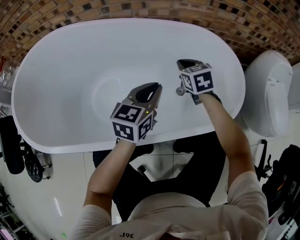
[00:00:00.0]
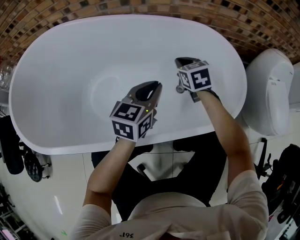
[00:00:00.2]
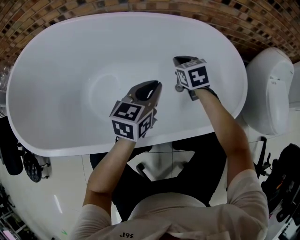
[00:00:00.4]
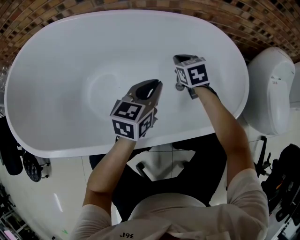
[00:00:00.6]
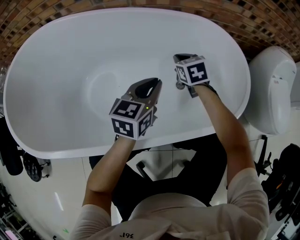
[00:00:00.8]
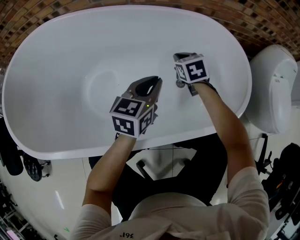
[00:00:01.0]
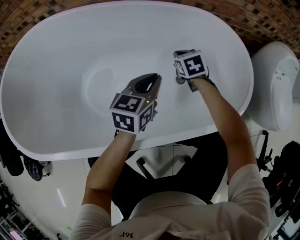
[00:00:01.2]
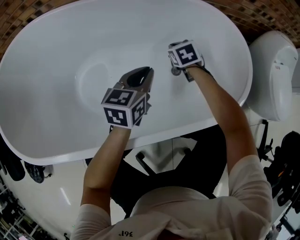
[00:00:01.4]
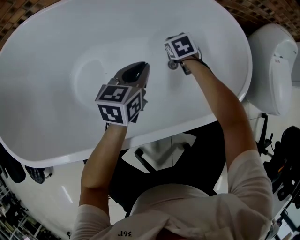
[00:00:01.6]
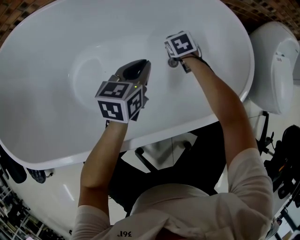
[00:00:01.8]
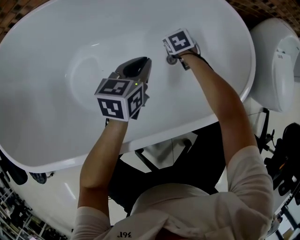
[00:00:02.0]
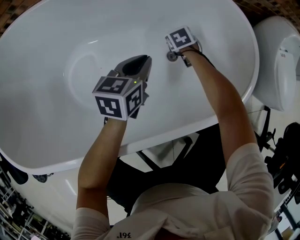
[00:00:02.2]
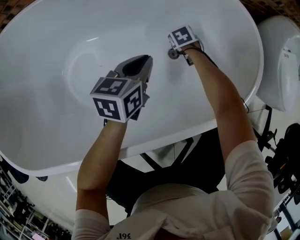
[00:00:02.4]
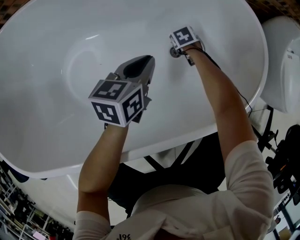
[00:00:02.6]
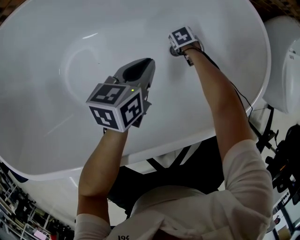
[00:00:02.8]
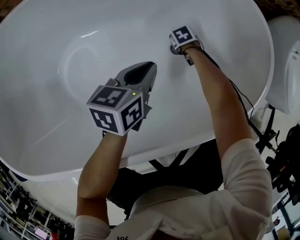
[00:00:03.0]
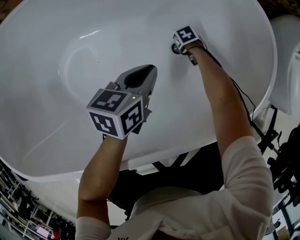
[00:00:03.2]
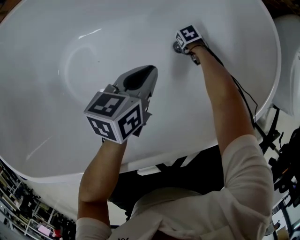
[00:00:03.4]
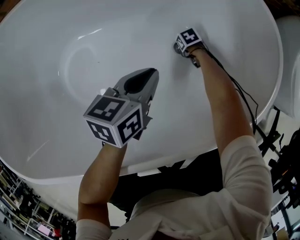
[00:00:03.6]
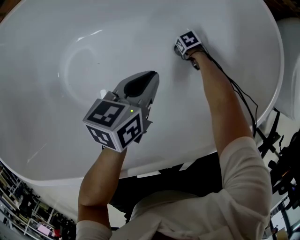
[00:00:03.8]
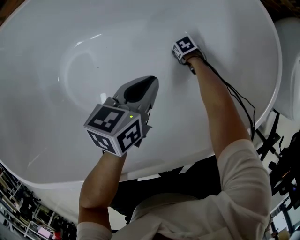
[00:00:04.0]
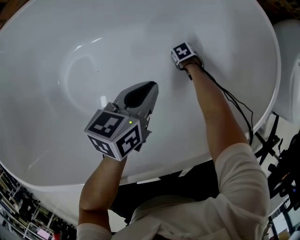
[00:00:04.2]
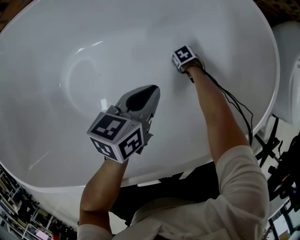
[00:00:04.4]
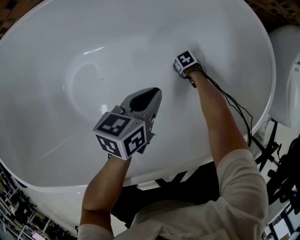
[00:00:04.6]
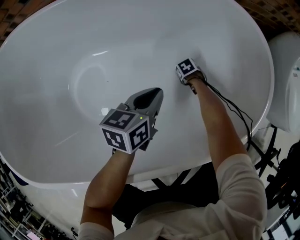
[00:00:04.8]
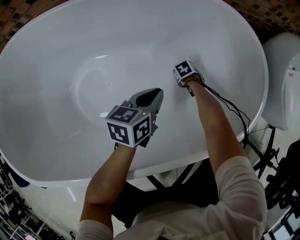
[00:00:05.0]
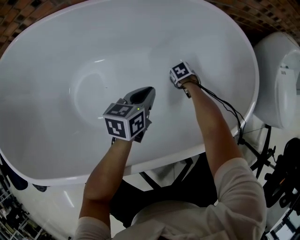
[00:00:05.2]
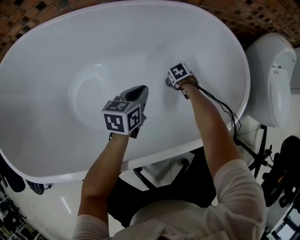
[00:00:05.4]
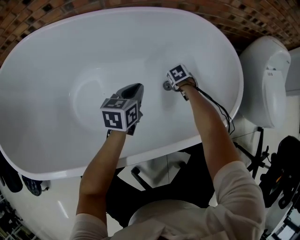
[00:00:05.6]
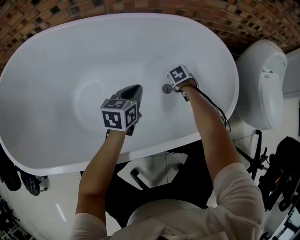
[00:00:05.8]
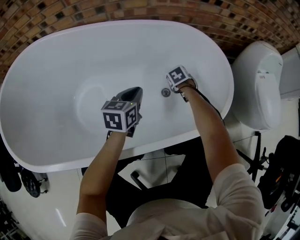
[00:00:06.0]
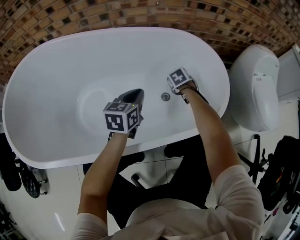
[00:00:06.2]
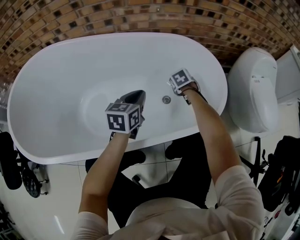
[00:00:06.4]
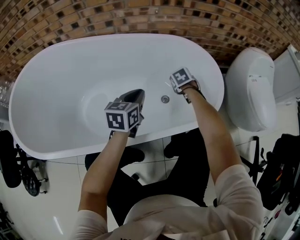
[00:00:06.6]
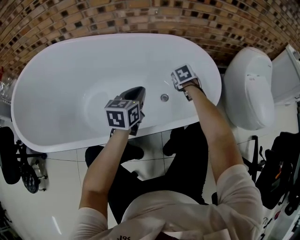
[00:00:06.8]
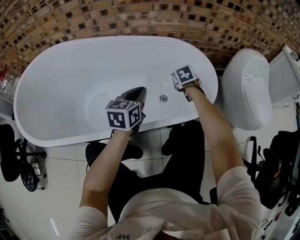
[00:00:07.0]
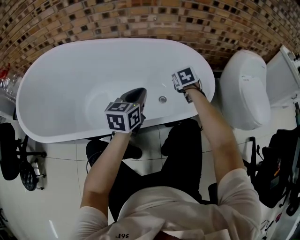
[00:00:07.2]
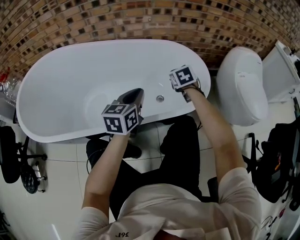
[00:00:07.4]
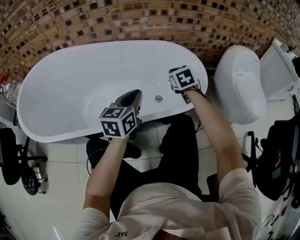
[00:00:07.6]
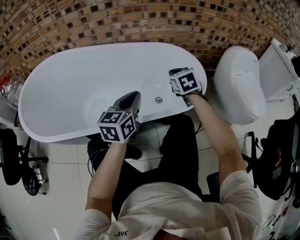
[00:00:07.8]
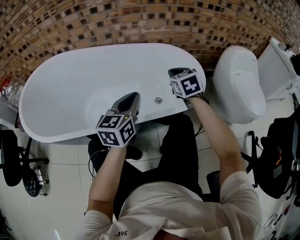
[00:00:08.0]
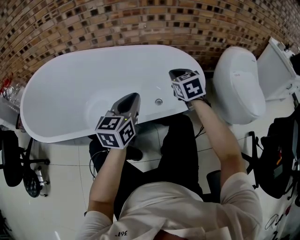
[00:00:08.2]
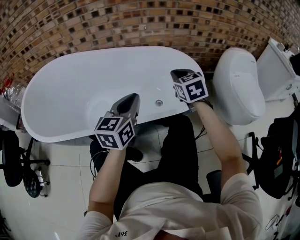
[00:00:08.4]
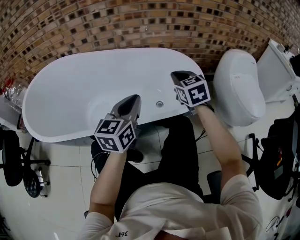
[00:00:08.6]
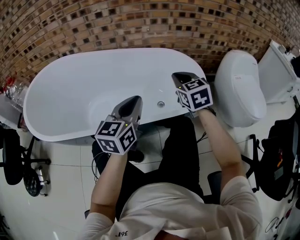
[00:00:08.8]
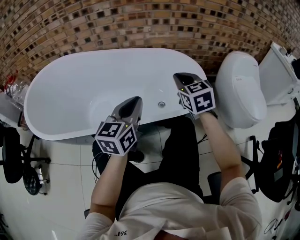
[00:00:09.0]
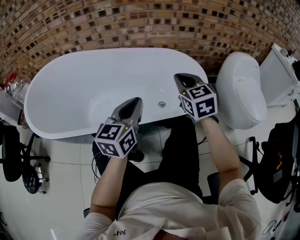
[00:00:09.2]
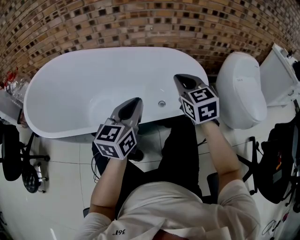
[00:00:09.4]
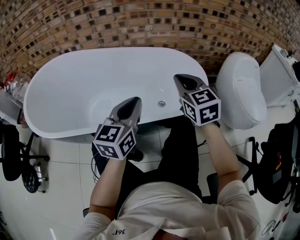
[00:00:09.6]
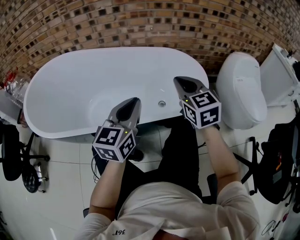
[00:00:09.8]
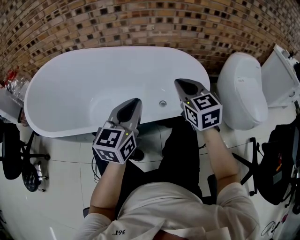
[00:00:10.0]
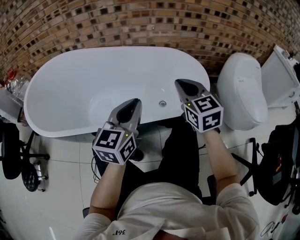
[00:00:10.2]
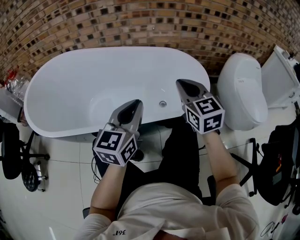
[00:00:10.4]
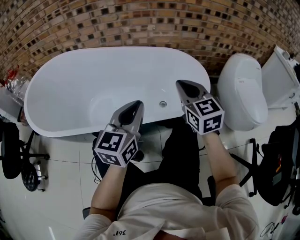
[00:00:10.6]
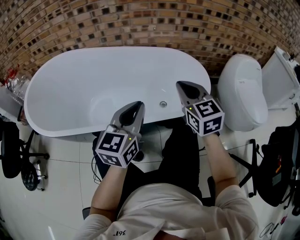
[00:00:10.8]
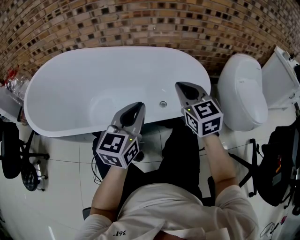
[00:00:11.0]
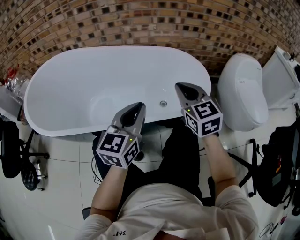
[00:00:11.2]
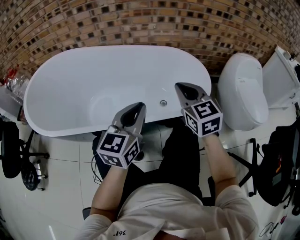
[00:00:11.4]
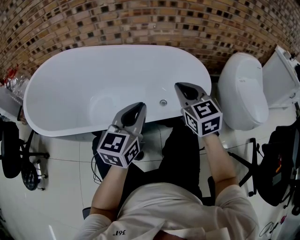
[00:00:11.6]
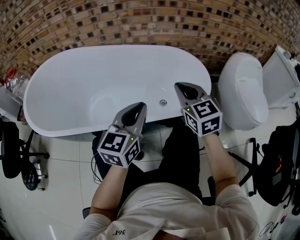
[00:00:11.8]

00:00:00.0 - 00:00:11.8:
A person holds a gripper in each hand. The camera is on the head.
00:00:00.0 - 00:00:01.4: The left gripper is displaced downward by some 10 cm; the right gripper shifts about 15 cm downward.
00:00:01.4 - 00:00:03.0: The right gripper moves downward, some 25 cm, and changes its angle by some 20 degrees. The left gripper shifts approximately 5 cm downward.
00:00:03.0 - 00:00:04.4: The right gripper travels downward by roughly 5 cm.
00:00:04.4 - 00:00:06.0: The right gripper moves upward, some 25 cm. Meanwhile the left gripper goes some 5 cm upward.
00:00:06.0 - 00:00:07.4: The left gripper goes approximately 20 cm upward and backward, while the right gripper heads upward, covering about 25 cm, and rotates some 30 degrees.
00:00:07.4 - 00:00:08.8: The left gripper shifts approximately 10 cm upward and backward. Meanwhile the right gripper travels upward and backward by some 20 cm, and rotates roughly 20 degrees.
00:00:08.8 - 00:00:10.4: The right gripper moves backward, about 5 cm.
00:00:10.4 - 00:00:11.8: The grippers move only a little.

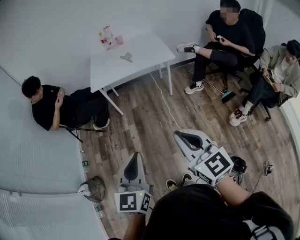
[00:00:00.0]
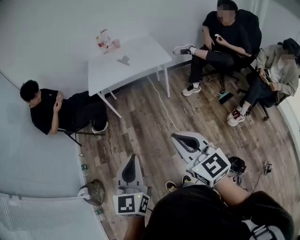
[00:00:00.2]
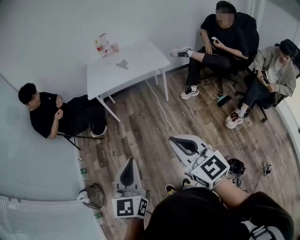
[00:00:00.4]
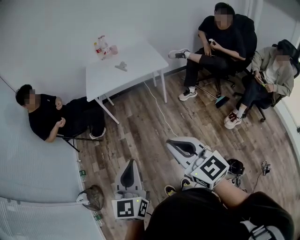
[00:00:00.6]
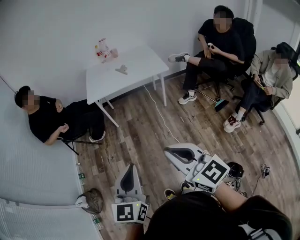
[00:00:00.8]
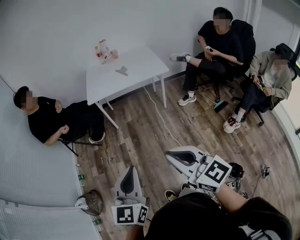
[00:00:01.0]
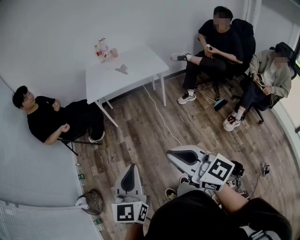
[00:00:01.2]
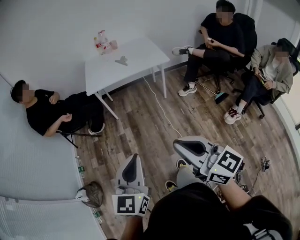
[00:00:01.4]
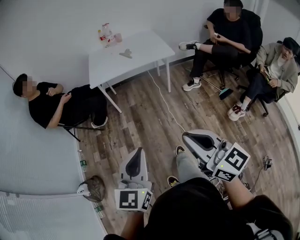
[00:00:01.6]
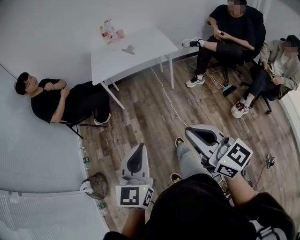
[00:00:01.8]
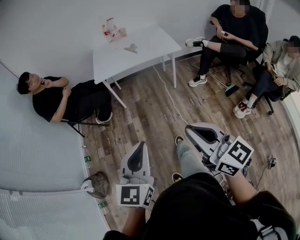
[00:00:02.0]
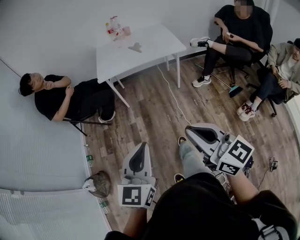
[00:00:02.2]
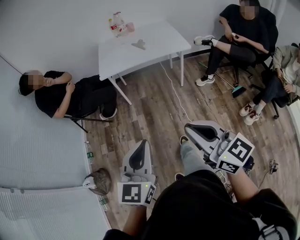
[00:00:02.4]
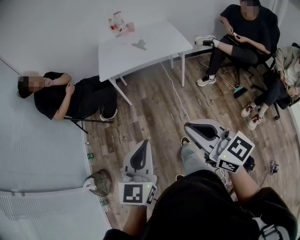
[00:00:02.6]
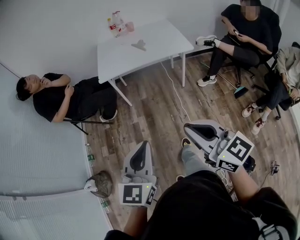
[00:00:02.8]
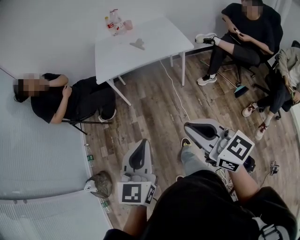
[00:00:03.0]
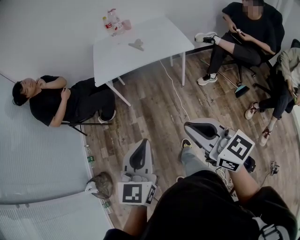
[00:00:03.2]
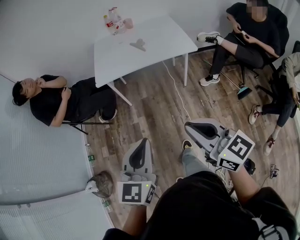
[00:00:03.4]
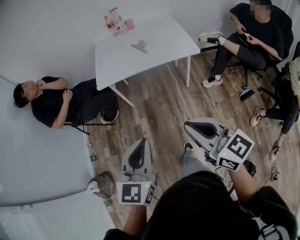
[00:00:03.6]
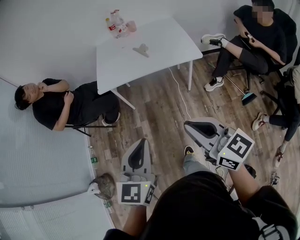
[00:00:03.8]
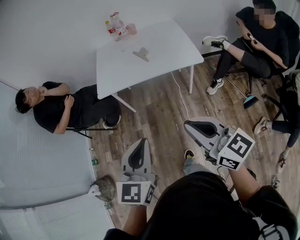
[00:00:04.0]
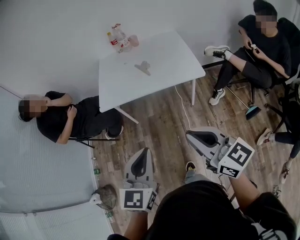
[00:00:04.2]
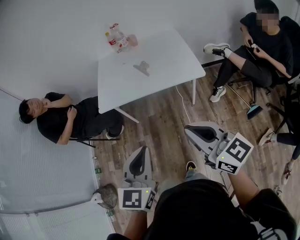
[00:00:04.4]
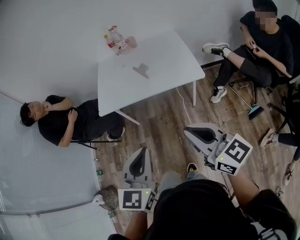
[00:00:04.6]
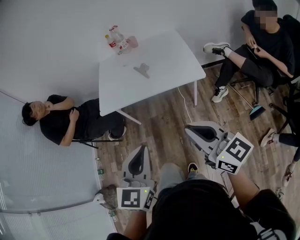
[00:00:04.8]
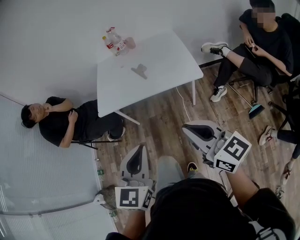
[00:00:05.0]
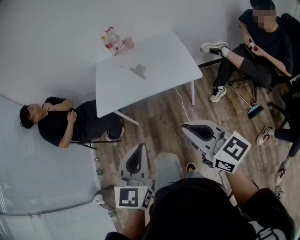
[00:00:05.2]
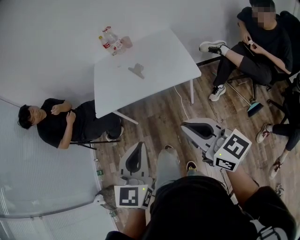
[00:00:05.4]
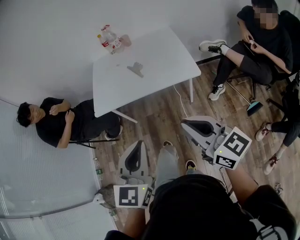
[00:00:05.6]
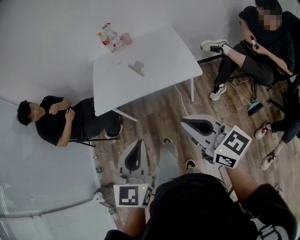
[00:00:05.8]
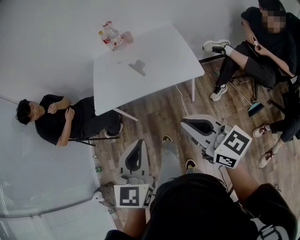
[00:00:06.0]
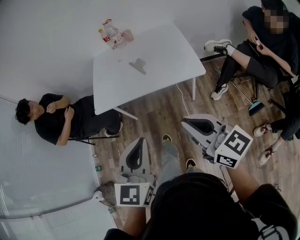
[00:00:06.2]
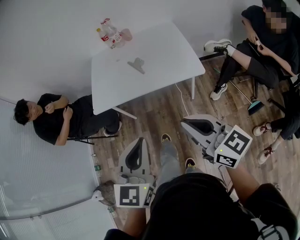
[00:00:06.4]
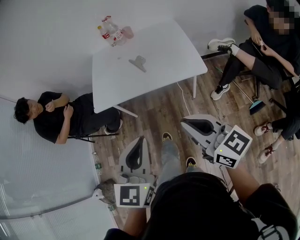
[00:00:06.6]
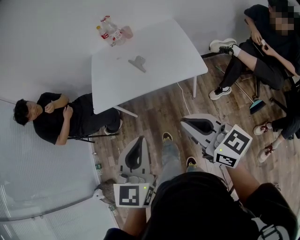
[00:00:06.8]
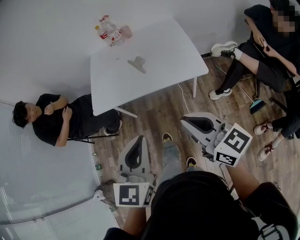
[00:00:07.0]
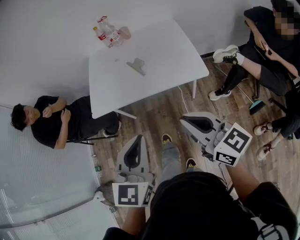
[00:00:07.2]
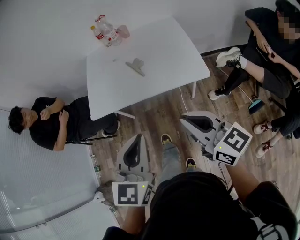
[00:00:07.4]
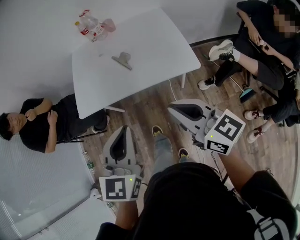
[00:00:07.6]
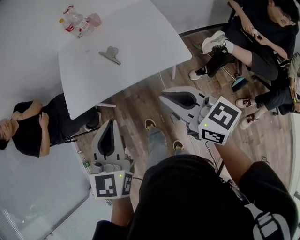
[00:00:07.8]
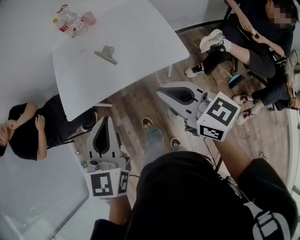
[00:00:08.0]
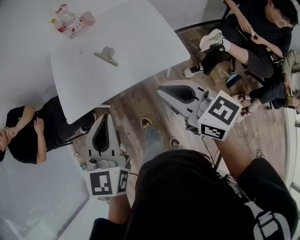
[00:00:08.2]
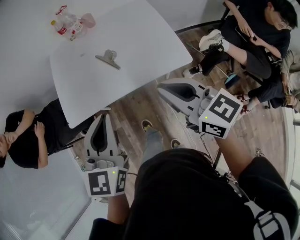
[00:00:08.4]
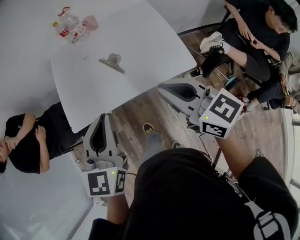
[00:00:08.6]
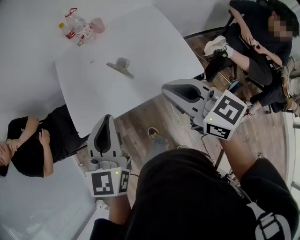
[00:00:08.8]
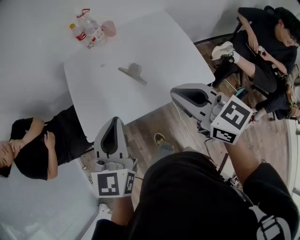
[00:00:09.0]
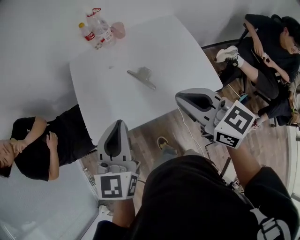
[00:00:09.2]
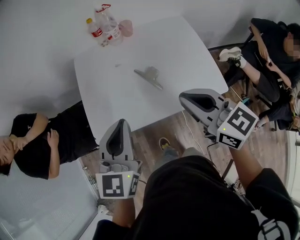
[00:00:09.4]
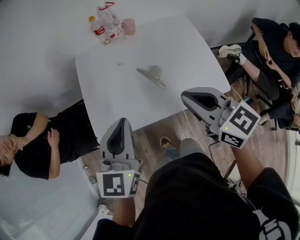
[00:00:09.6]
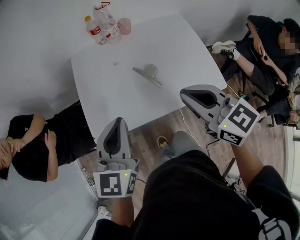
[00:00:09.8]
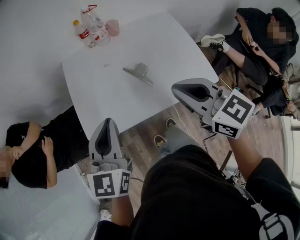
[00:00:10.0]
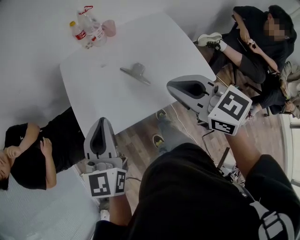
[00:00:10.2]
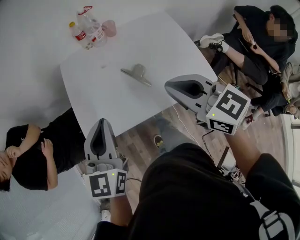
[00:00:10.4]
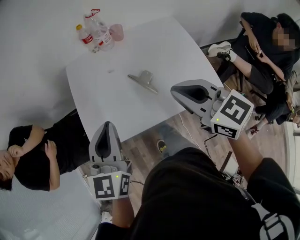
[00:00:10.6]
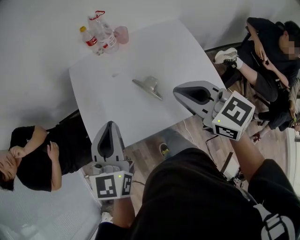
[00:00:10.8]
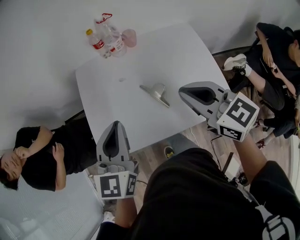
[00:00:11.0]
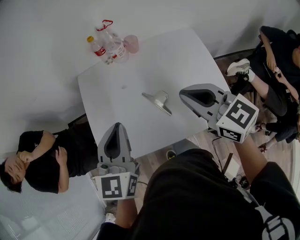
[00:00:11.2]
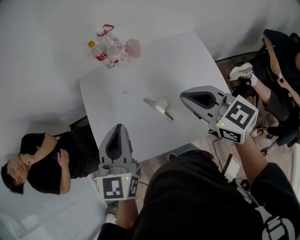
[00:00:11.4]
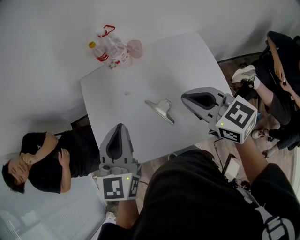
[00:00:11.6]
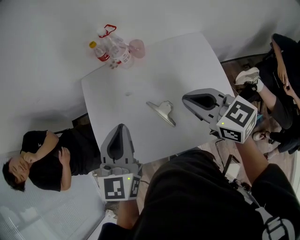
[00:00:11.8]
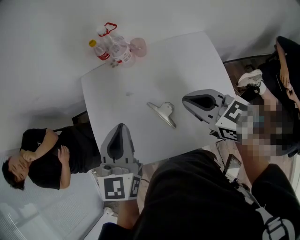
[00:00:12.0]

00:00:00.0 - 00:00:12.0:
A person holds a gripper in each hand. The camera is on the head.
00:00:00.0 - 00:00:01.6: The right gripper travels backward by approximately 5 cm.
00:00:01.6 - 00:00:03.0: Both grippers move forward, roughly 15 cm.
00:00:03.0 - 00:00:04.4: The two grippers go roughly 25 cm forward and to the right.
00:00:04.4 - 00:00:06.0: Both grippers travel together forward, about 5 cm.
00:00:06.0 - 00:00:07.6: Both grippers travel together forward, some 10 cm.
00:00:07.6 - 00:00:09.0: The left gripper goes roughly 25 cm forward and to the left. The right gripper heads forward, covering roughly 20 cm.
00:00:09.0 - 00:00:10.4: The left gripper goes roughly 5 cm to the left. The right gripper changes place by some 5 cm.
00:00:10.4 - 00:00:12.0: The grippers both shift forward and to the right by approximately 20 cm.
